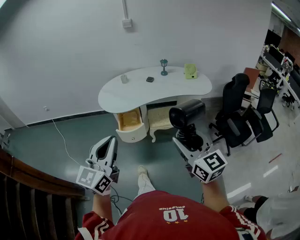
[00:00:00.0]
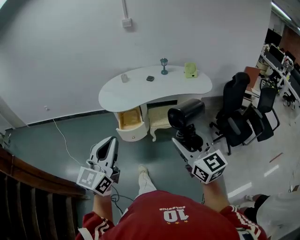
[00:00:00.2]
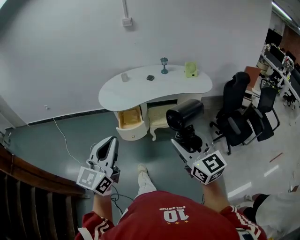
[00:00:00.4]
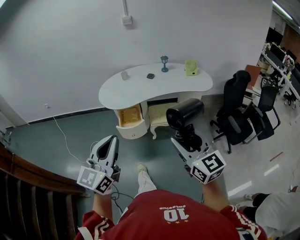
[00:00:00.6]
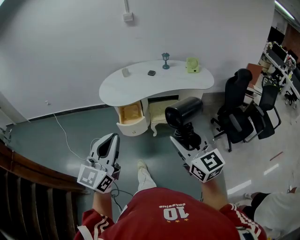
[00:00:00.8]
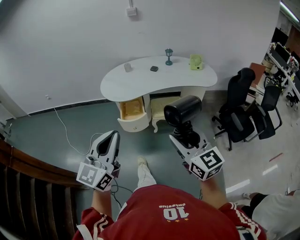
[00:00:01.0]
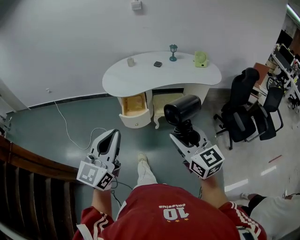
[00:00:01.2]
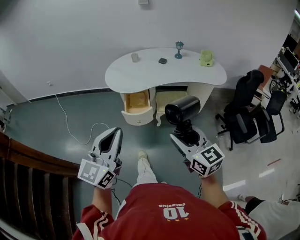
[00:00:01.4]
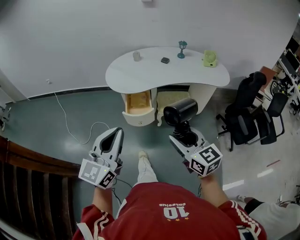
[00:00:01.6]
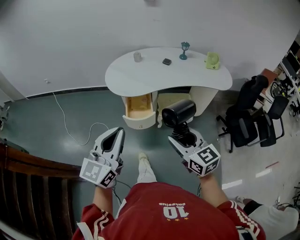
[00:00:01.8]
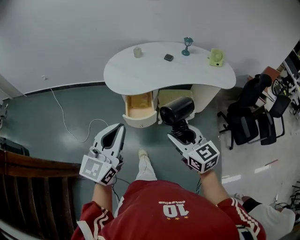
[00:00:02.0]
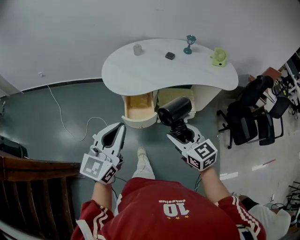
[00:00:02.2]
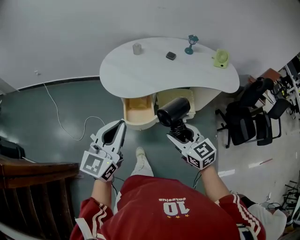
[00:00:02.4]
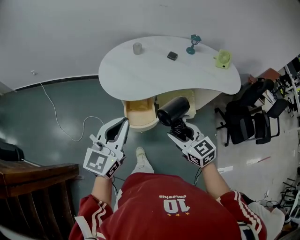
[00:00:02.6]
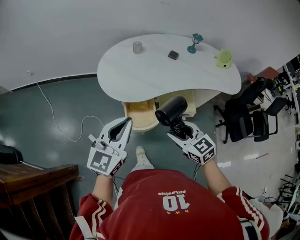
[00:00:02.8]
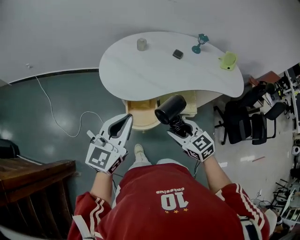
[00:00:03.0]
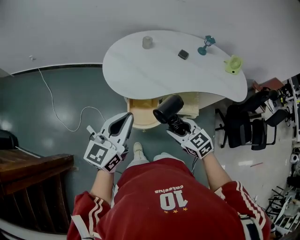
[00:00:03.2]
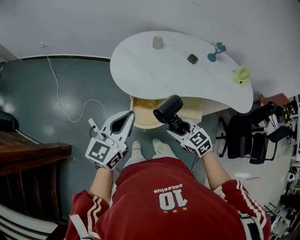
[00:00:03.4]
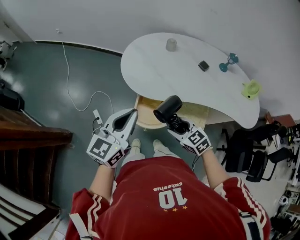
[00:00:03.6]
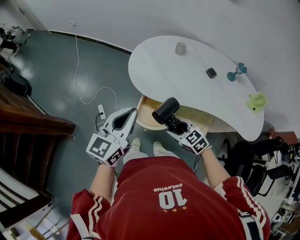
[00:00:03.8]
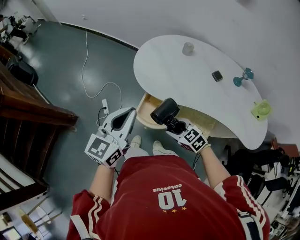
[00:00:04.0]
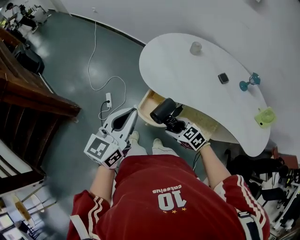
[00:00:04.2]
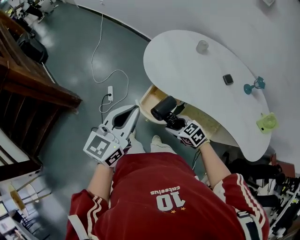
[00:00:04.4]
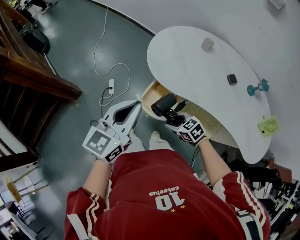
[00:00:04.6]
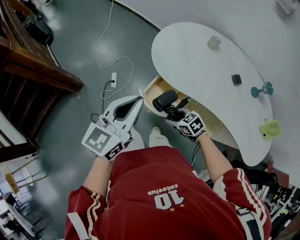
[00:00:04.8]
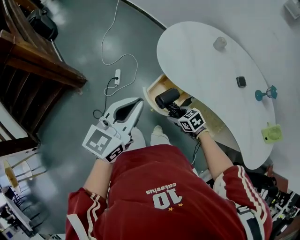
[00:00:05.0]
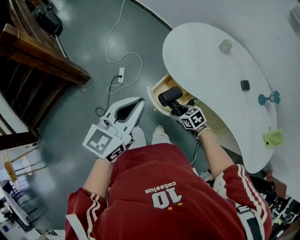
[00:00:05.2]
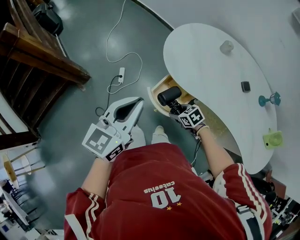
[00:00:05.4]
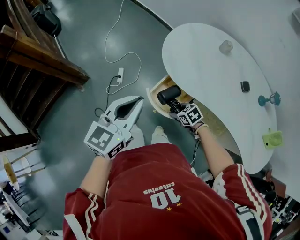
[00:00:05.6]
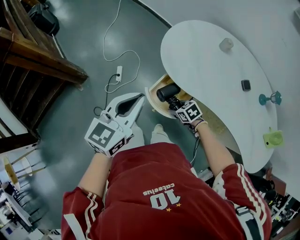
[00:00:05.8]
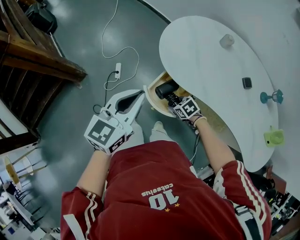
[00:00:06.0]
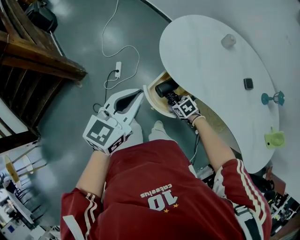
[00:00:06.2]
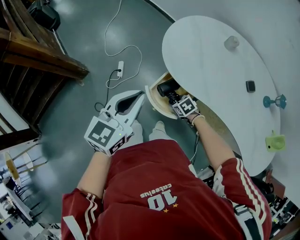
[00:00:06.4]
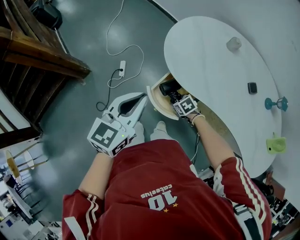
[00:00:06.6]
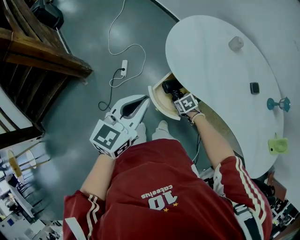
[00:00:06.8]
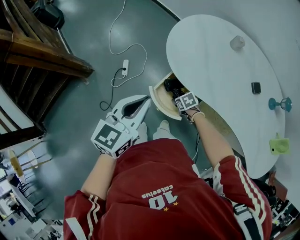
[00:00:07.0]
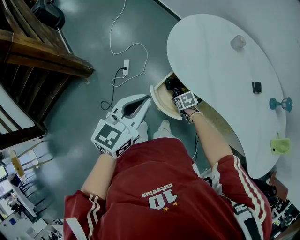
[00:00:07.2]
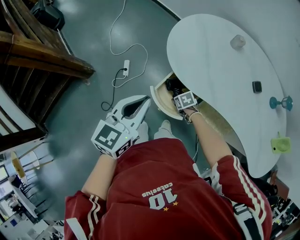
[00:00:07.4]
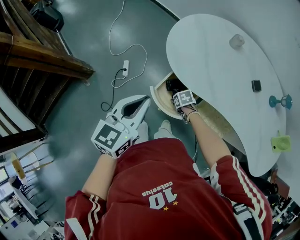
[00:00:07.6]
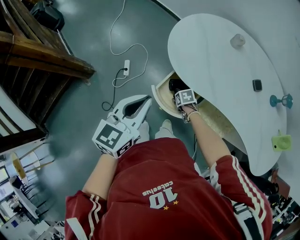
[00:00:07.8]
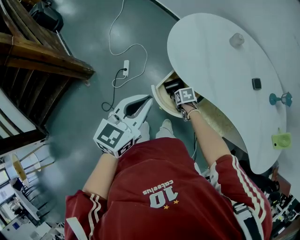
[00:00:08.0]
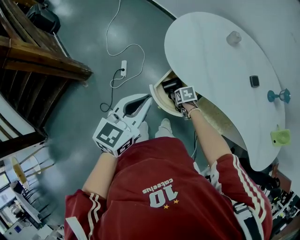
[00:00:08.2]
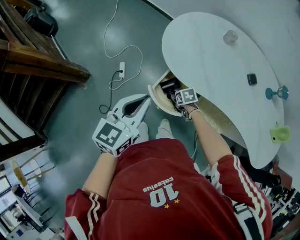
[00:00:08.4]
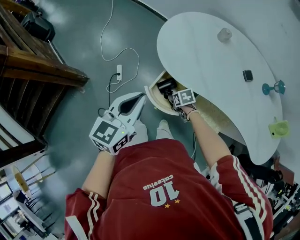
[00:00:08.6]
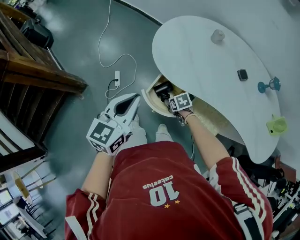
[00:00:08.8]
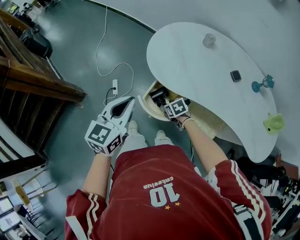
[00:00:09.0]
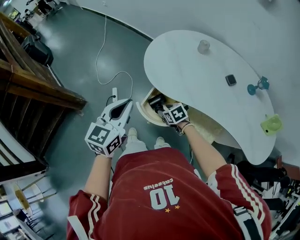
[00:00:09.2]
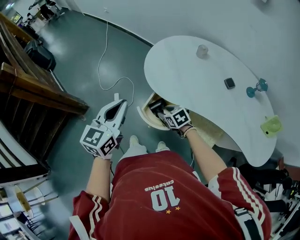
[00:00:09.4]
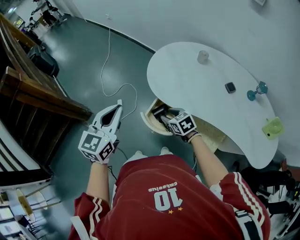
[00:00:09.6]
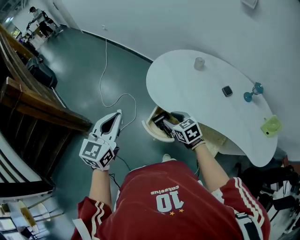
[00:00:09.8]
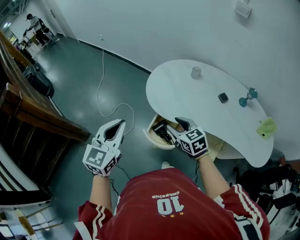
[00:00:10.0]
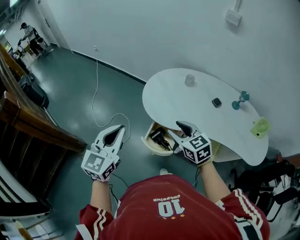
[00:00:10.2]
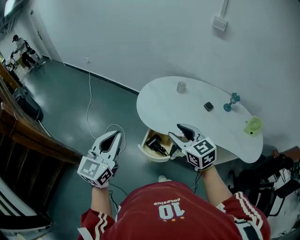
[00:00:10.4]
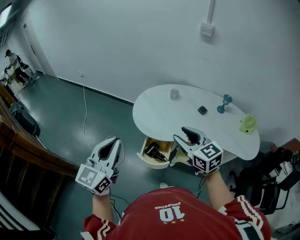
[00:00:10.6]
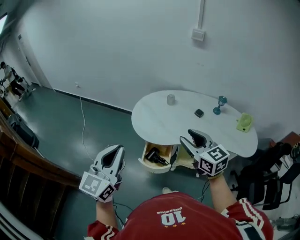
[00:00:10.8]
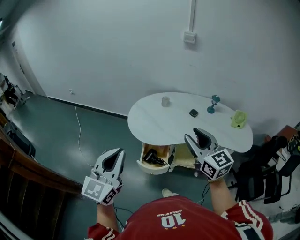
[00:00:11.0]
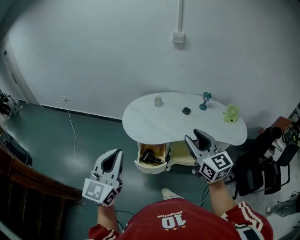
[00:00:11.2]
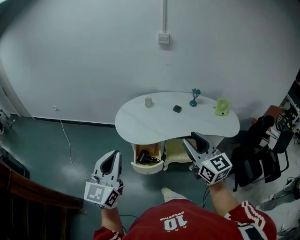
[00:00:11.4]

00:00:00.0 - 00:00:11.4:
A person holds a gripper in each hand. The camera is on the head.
00:00:00.0 - 00:00:01.4: The right gripper is displaced downward and to the left by roughly 10 cm.
00:00:01.4 - 00:00:02.8: The left gripper shifts some 30 cm forward, while the right gripper heads forward and downward, covering approximately 30 cm, and rotates some 20 degrees.
00:00:02.8 - 00:00:04.2: The left gripper changes its angle by roughly 40 degrees. Meanwhile the right gripper goes about 15 cm downward, and turns by some 50 degrees.
00:00:04.2 - 00:00:05.6: The right gripper is displaced downward and forward by approximately 15 cm.
00:00:05.6 - 00:00:07.2: The left gripper ends up about 5 cm from where it was. Meanwhile the right gripper heads downward and forward, covering some 10 cm.
00:00:07.2 - 00:00:08.6: There are only small adjustments of the grippers.
00:00:08.6 - 00:00:10.0: The left gripper moves upward and to the left, roughly 15 cm. Meanwhile the right gripper moves upward, approximately 30 cm, and tilts its fingers about 30 degrees upward.
00:00:10.0 - 00:00:11.4: The right gripper heads upward, covering about 25 cm, and tilts its fingers approximately 30 degrees upward, while the left gripper travels upward by about 10 cm, and turns by some 30 degrees.

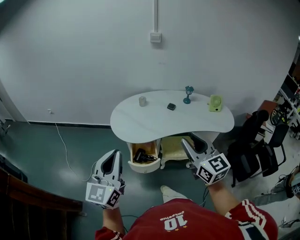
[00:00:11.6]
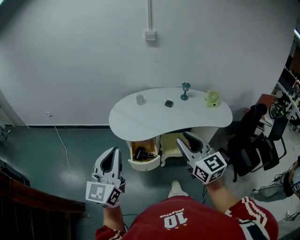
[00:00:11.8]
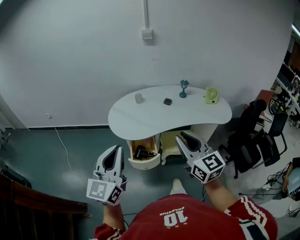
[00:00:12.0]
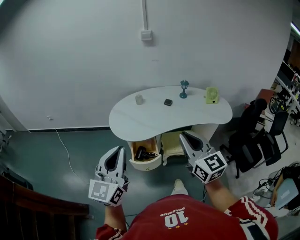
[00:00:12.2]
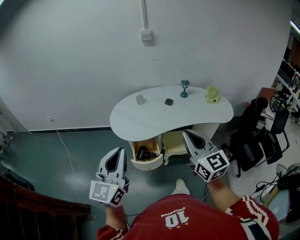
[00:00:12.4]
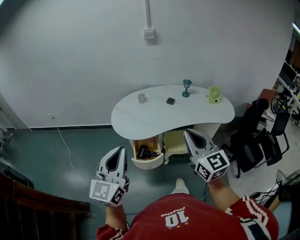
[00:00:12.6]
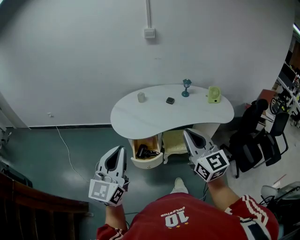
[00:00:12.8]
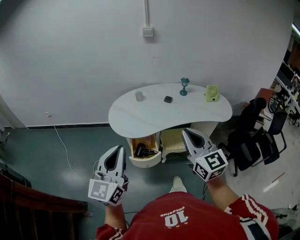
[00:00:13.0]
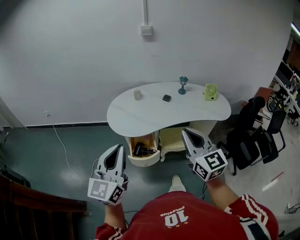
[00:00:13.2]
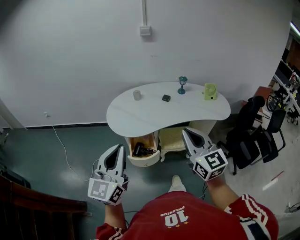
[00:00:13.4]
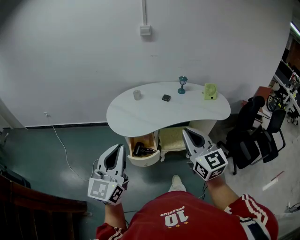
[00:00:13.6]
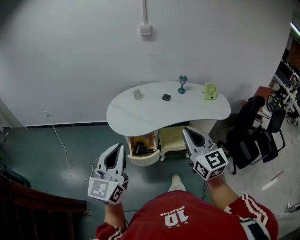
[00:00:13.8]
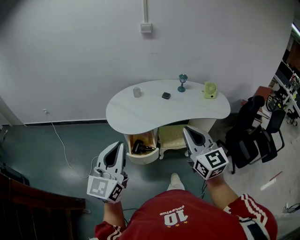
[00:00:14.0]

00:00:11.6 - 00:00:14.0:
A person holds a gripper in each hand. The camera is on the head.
00:00:11.6 - 00:00:12.8: The right gripper closes up.
00:00:12.8 - 00:00:14.0: Both grippers stay put.

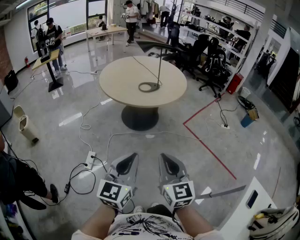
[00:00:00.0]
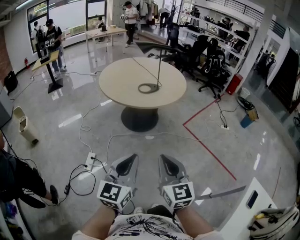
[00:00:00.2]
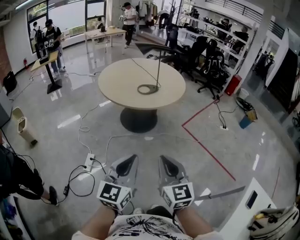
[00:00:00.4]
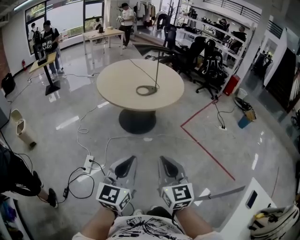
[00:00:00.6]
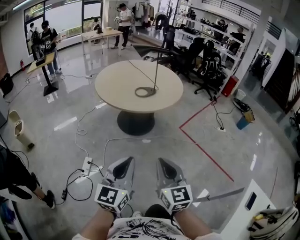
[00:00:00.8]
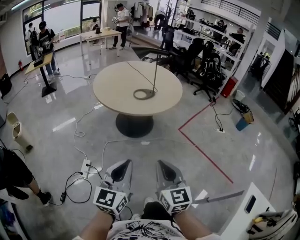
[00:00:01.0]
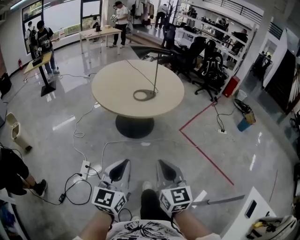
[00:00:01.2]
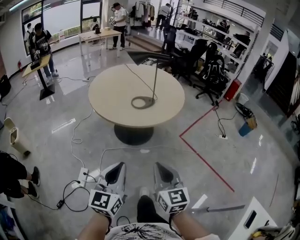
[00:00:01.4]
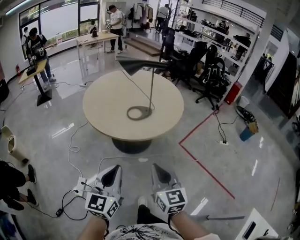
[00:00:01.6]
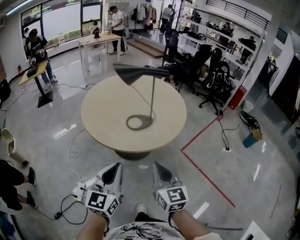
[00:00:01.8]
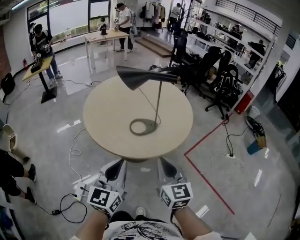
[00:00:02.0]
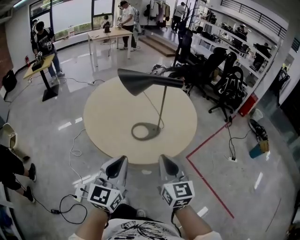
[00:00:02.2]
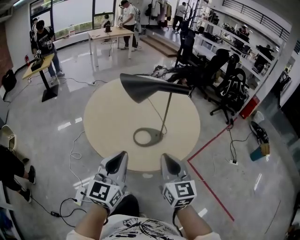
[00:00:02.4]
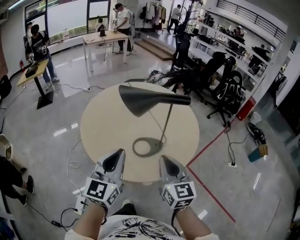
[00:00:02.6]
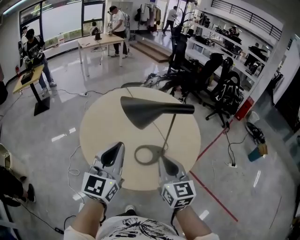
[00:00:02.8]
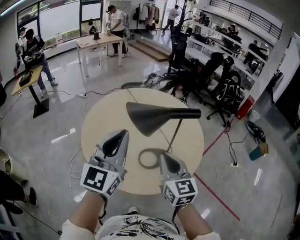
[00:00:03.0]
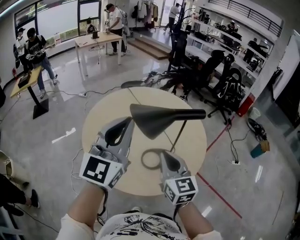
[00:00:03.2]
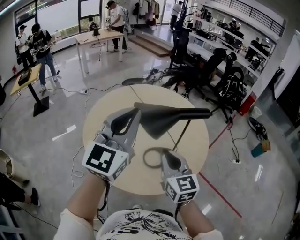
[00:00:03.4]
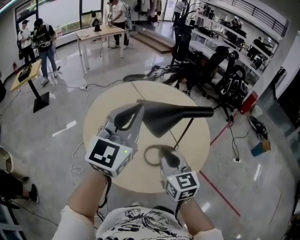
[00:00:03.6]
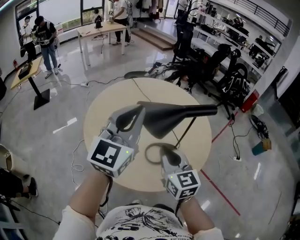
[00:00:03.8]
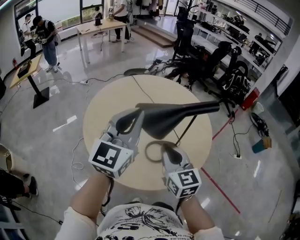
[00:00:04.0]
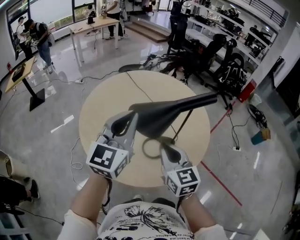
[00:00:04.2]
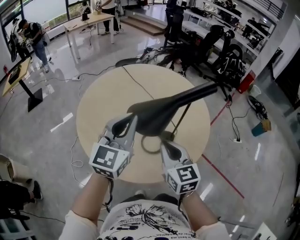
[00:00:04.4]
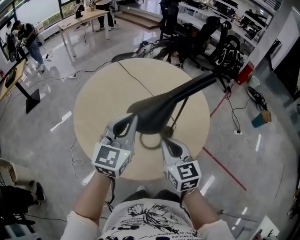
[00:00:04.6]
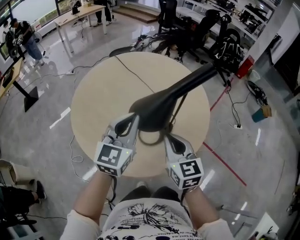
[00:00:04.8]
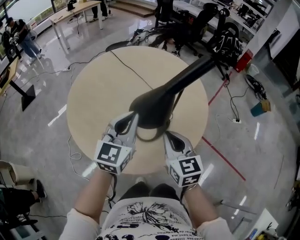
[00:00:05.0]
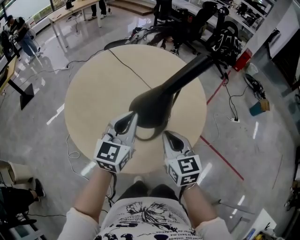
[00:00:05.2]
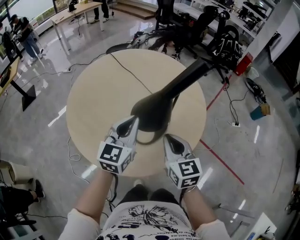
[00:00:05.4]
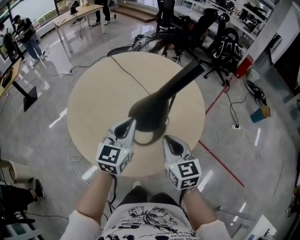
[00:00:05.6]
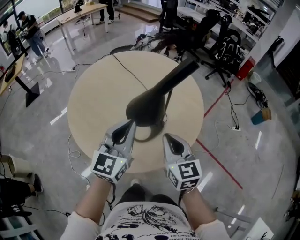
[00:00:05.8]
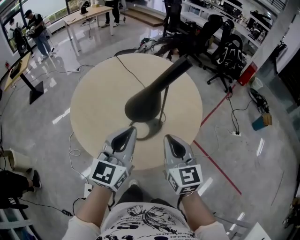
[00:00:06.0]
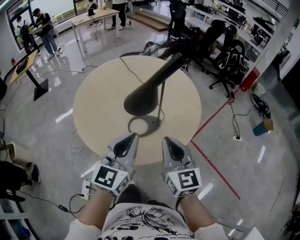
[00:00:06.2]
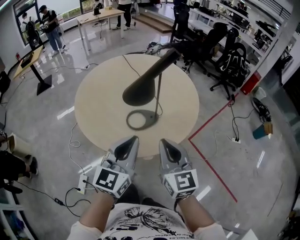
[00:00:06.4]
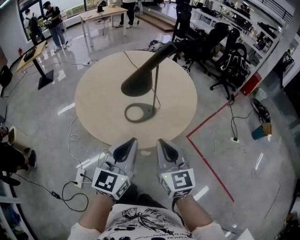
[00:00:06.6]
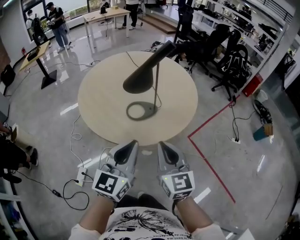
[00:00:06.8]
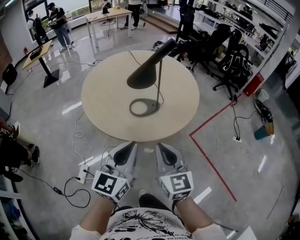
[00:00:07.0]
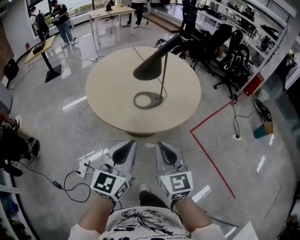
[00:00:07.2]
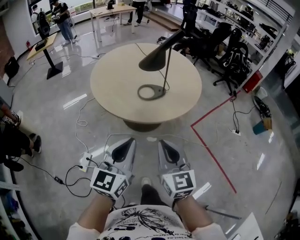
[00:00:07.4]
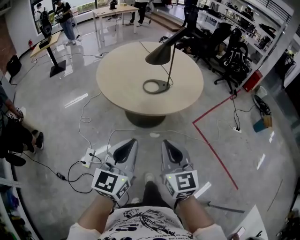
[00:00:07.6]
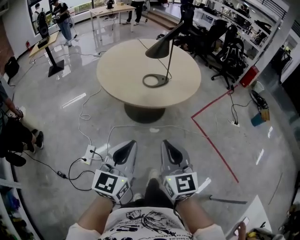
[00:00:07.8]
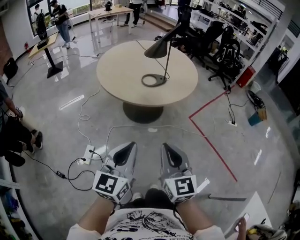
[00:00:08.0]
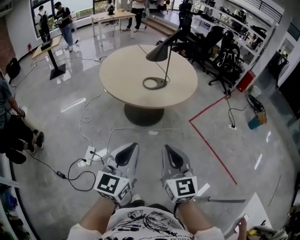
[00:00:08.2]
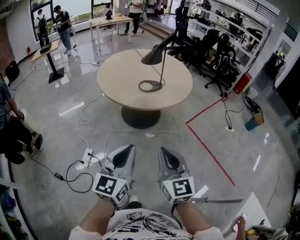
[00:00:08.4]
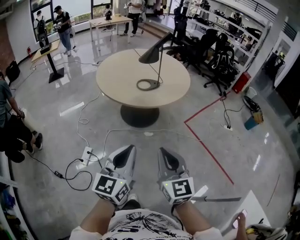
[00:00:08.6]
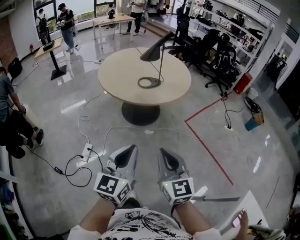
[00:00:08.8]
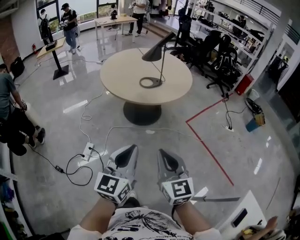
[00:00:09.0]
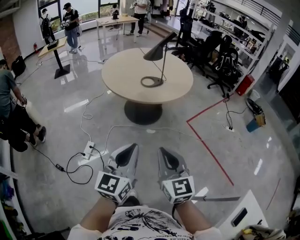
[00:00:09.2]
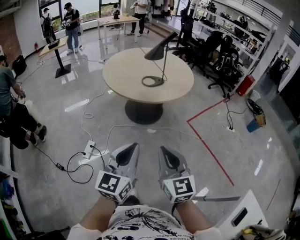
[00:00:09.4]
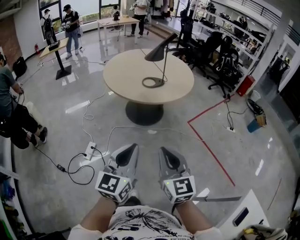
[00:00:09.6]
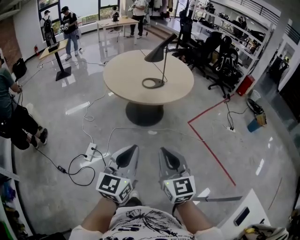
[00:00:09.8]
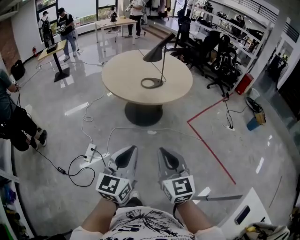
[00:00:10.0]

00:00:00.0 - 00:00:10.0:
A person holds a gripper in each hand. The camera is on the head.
00:00:00.0 - 00:00:01.4: Both grippers travel together forward, about 15 cm.
00:00:01.4 - 00:00:02.8: The pair of grippers is taken forward, about 40 cm.
00:00:02.8 - 00:00:04.2: The left gripper travels forward by some 10 cm. The right gripper is displaced forward by roughly 5 cm.
00:00:04.2 - 00:00:05.8: The left gripper is displaced downward and to the right by about 10 cm; the right gripper shifts approximately 10 cm to the right.
00:00:05.8 - 00:00:07.2: The grippers both shift backward by about 25 cm.
00:00:07.2 - 00:00:08.6: The two grippers go some 25 cm backward.
00:00:08.6 - 00:00:10.0: The grippers make only small movements.
